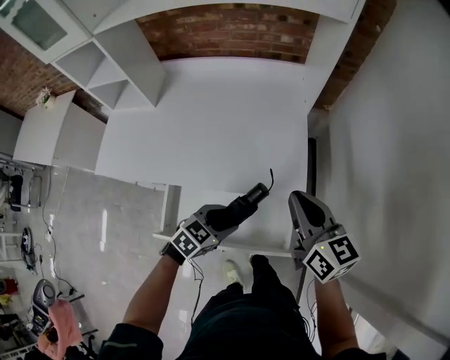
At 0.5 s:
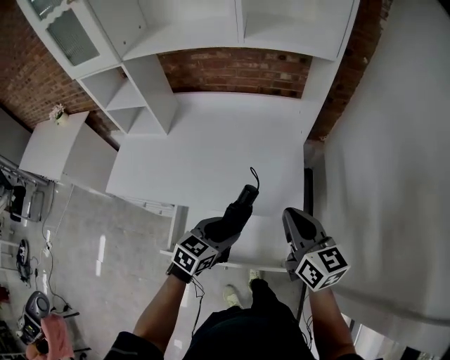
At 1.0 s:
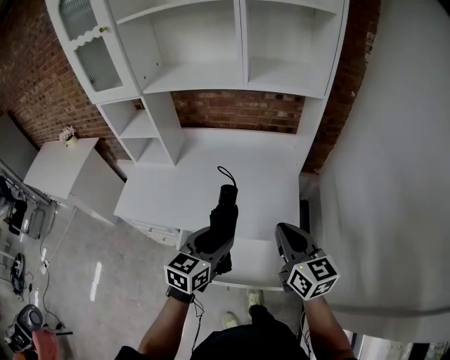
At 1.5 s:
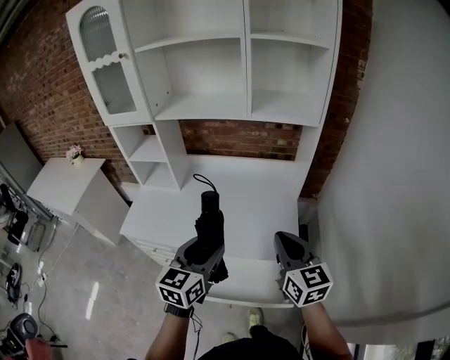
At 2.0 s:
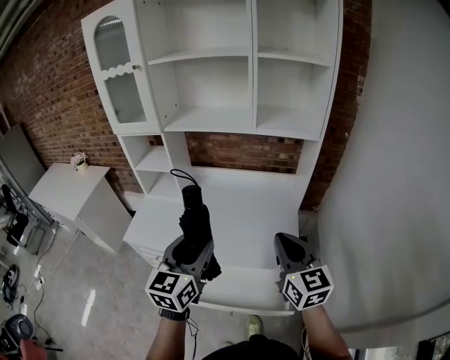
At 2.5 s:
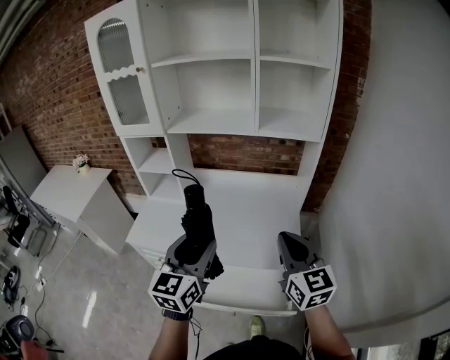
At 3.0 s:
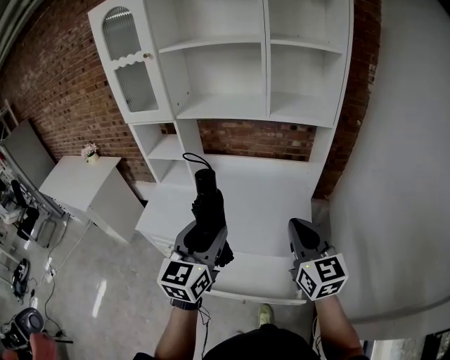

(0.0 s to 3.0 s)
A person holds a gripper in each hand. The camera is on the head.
0.0 s - 1.5 s: The right gripper moves upward and to the left, about 15 cm. The left gripper is displaced upward by some 30 cm, and tilts its fingers roughly 30 degrees upward.
1.5 s - 3.0 s: Both grippers travel together upward, approximately 5 cm.

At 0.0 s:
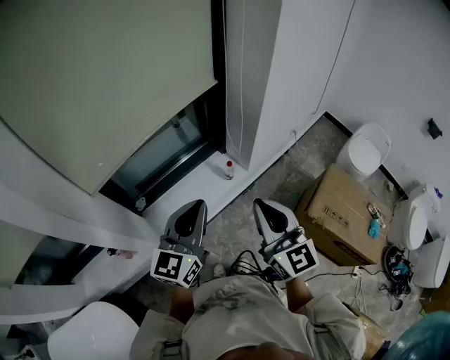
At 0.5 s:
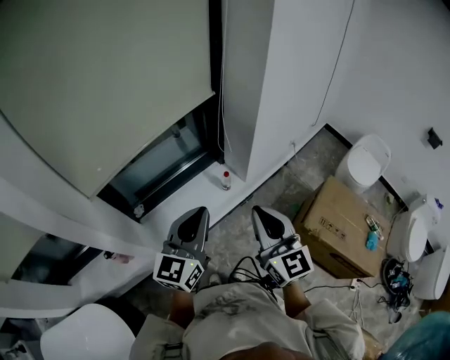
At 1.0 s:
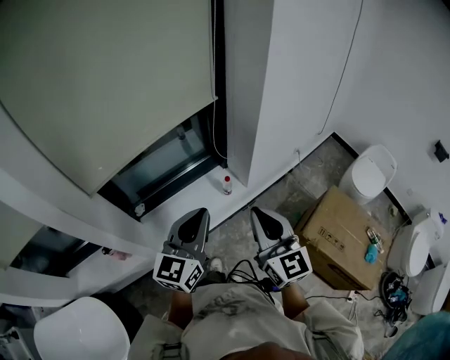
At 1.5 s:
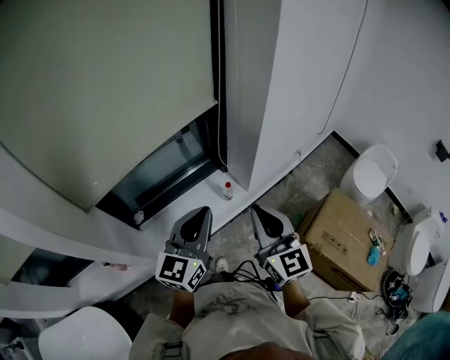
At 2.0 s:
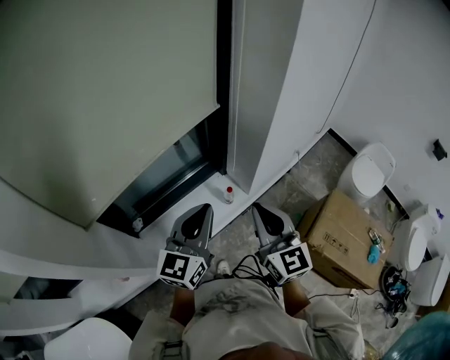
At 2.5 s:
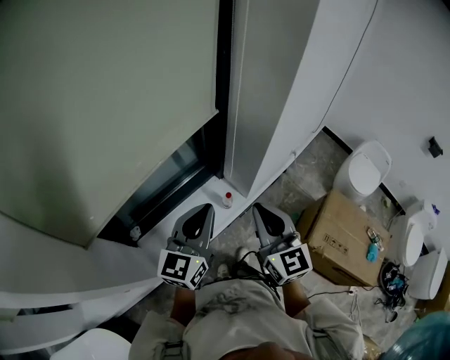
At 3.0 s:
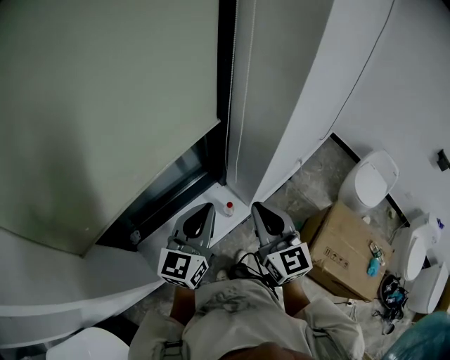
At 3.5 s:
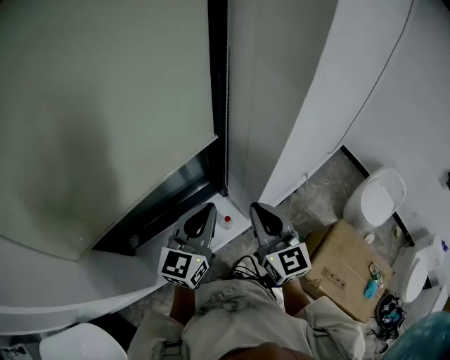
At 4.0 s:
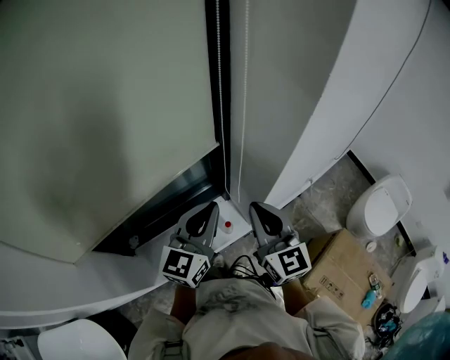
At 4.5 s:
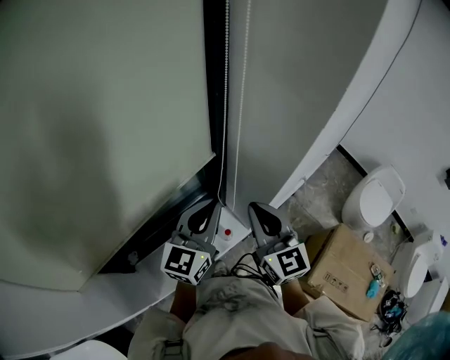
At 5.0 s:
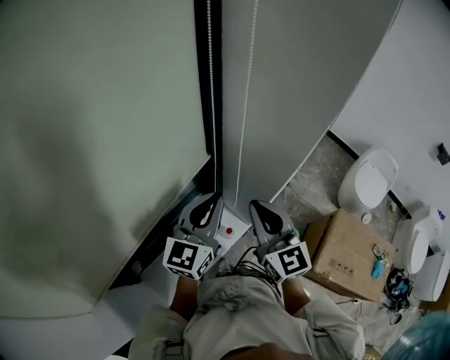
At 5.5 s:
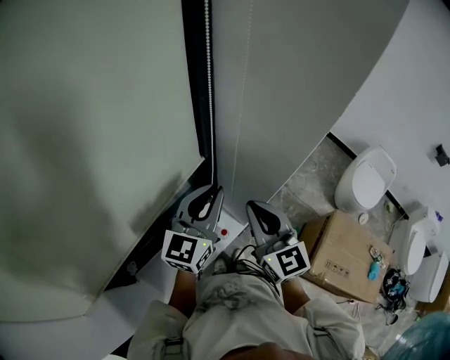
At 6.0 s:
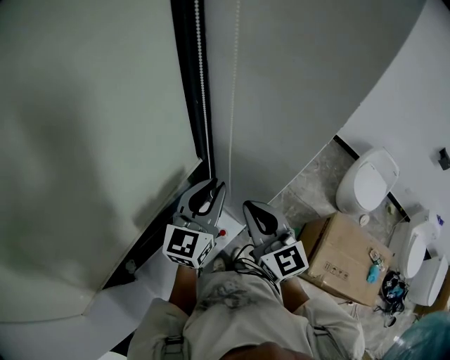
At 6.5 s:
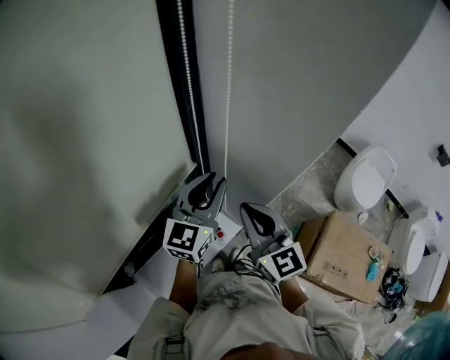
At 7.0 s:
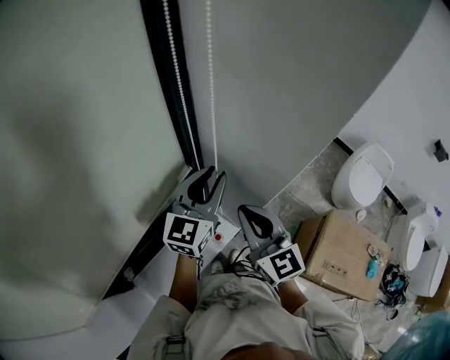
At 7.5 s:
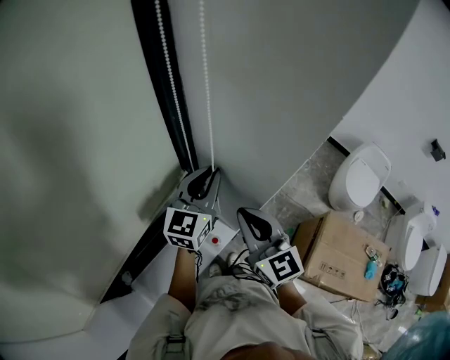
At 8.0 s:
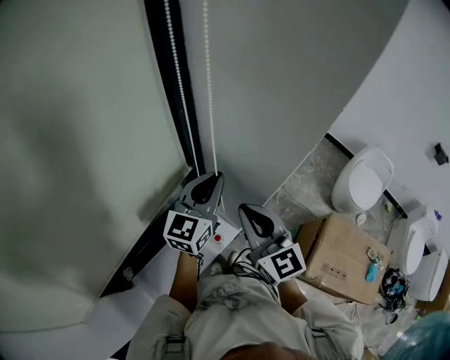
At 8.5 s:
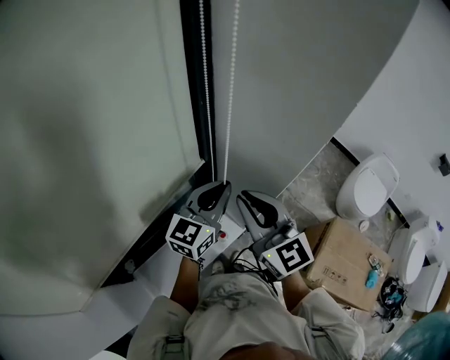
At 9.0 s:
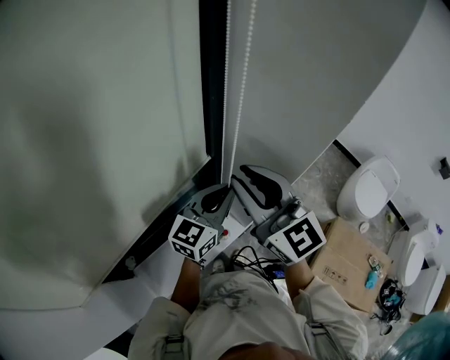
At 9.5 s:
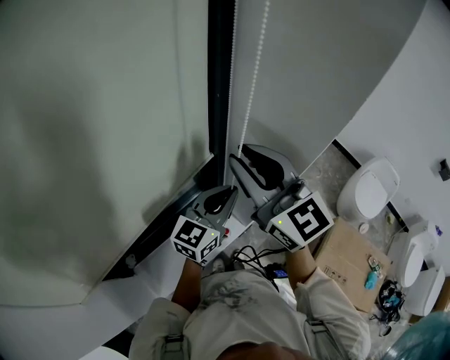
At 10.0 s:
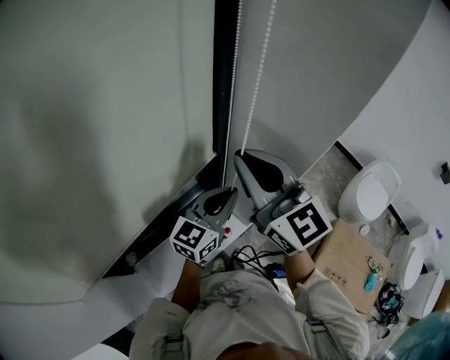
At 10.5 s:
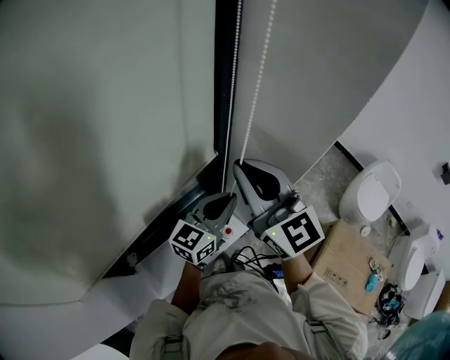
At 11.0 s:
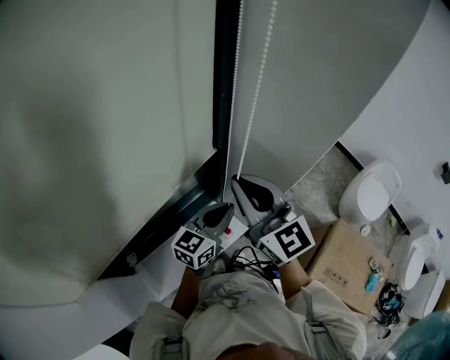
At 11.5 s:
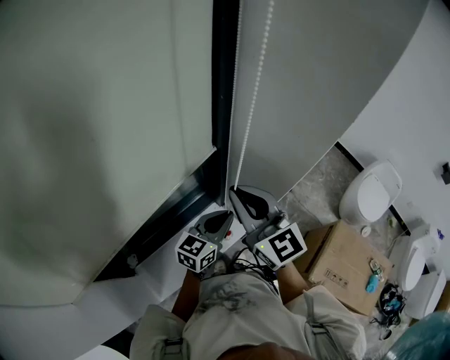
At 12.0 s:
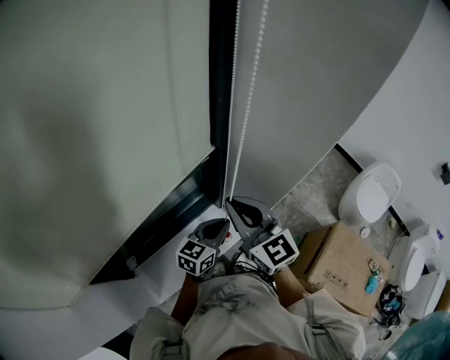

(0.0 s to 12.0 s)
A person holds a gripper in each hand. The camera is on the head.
0.0 s - 2.0 s: The two grippers go approximately 10 cm forward.
2.0 s - 4.0 s: Both grippers travel together forward, some 20 cm.
4.0 s - 6.0 s: The left gripper shifts approximately 15 cm forward. The right gripper heads forward, covering some 5 cm.
6.0 s - 8.0 s: The left gripper ends up roughly 5 cm from where it was.
8.0 s - 10.0 s: The right gripper goes roughly 15 cm upward and to the left, and opens, then closes once more. Meanwhile the left gripper heads backward, covering roughly 5 cm.
10.0 s - 12.0 s: Both grippers move downward, some 15 cm.

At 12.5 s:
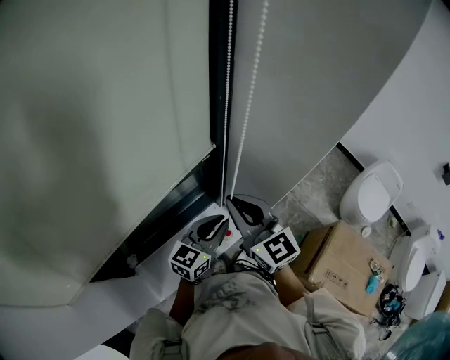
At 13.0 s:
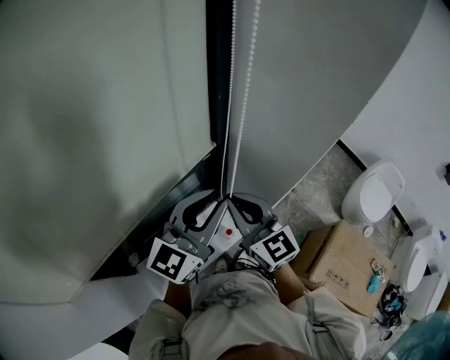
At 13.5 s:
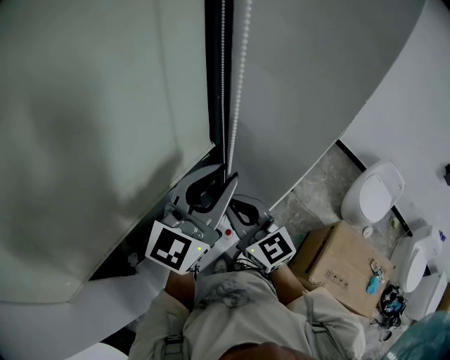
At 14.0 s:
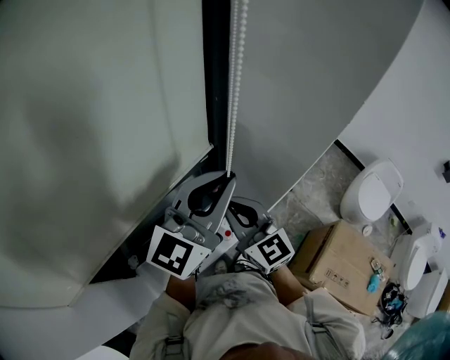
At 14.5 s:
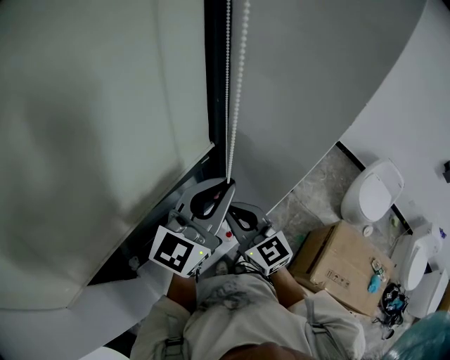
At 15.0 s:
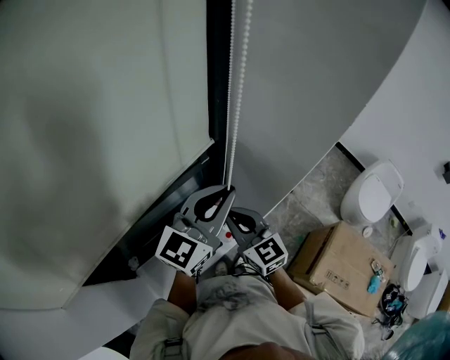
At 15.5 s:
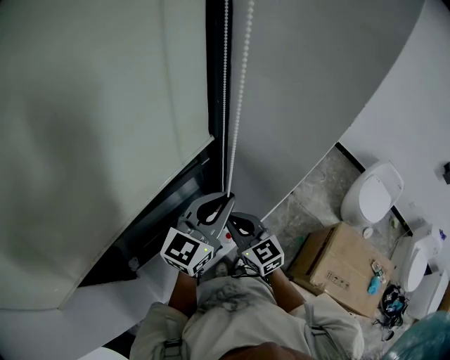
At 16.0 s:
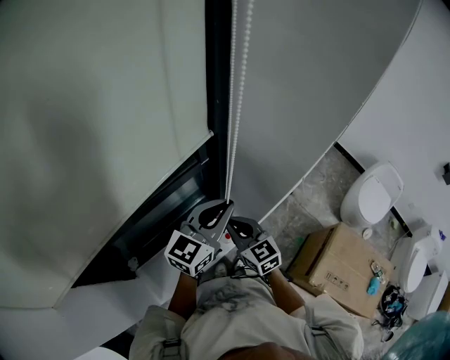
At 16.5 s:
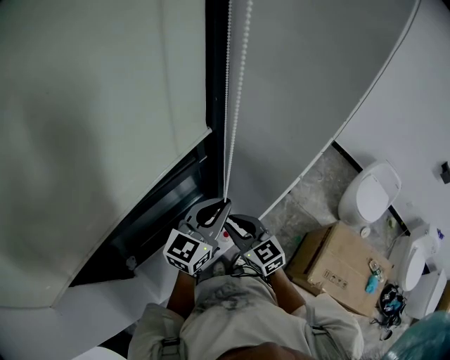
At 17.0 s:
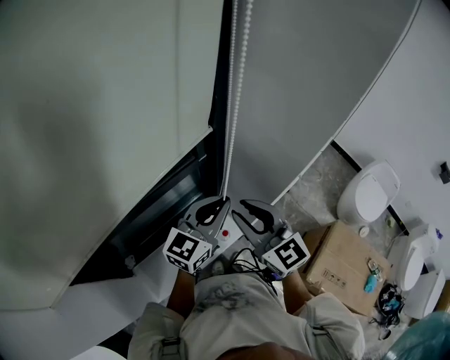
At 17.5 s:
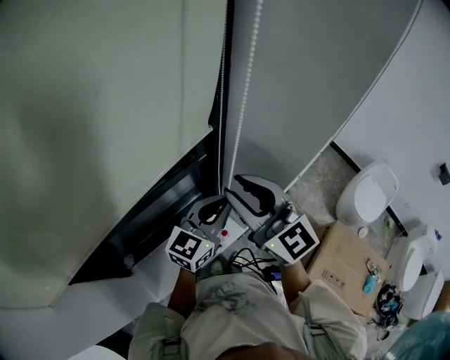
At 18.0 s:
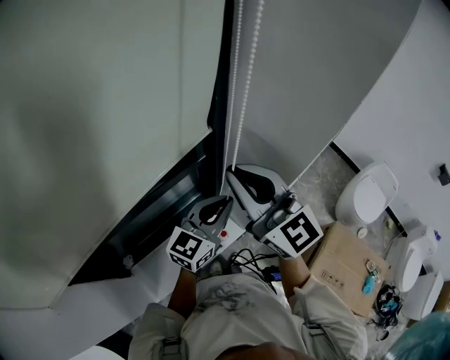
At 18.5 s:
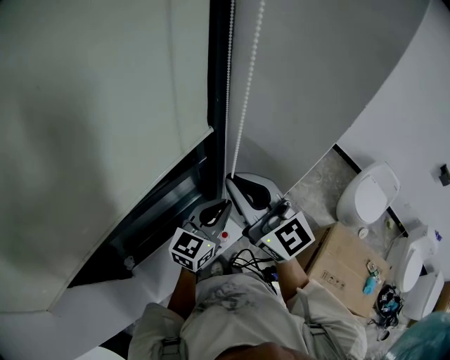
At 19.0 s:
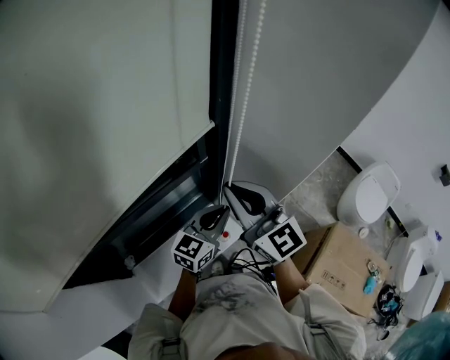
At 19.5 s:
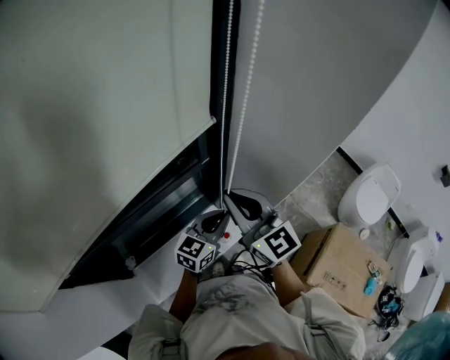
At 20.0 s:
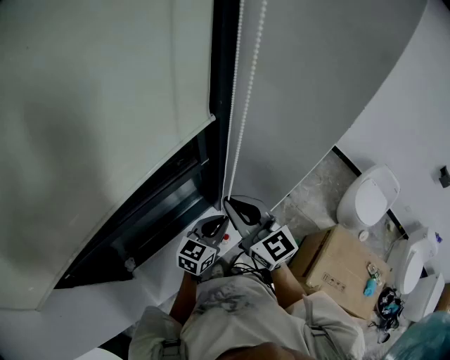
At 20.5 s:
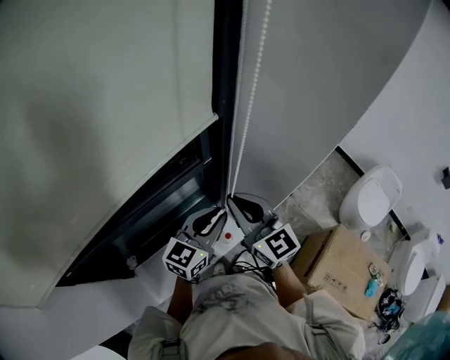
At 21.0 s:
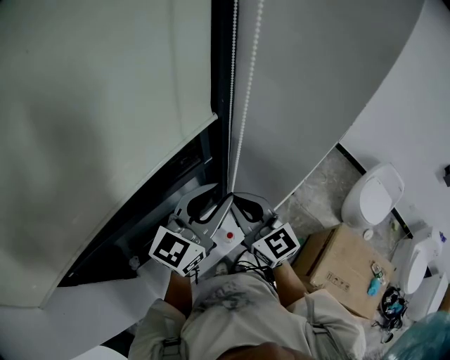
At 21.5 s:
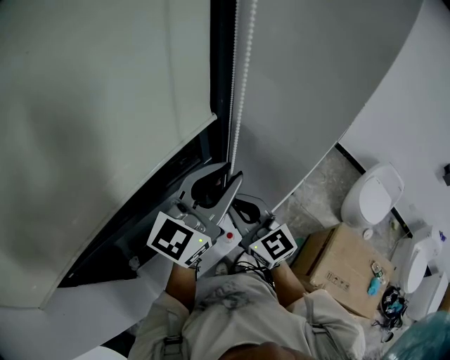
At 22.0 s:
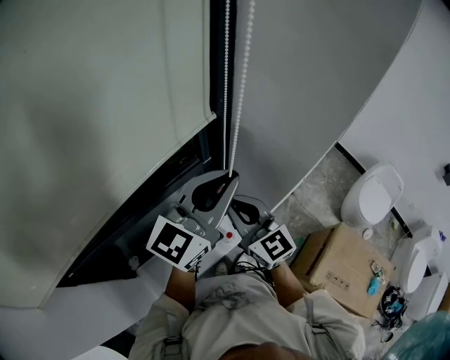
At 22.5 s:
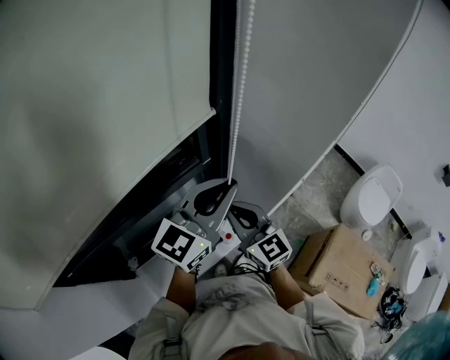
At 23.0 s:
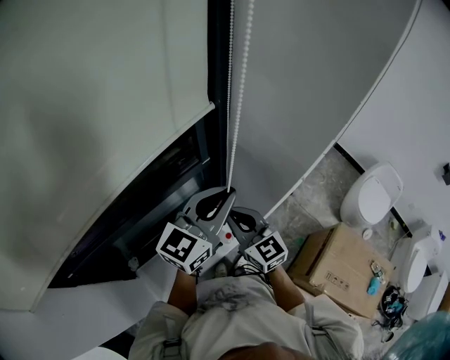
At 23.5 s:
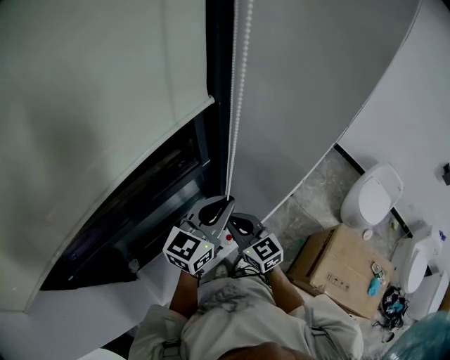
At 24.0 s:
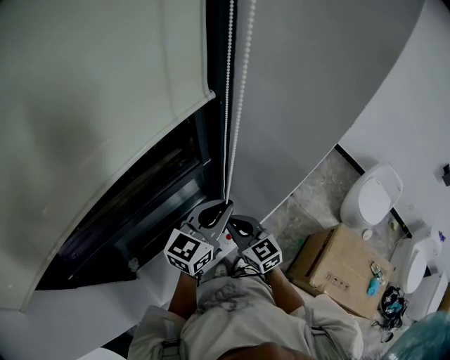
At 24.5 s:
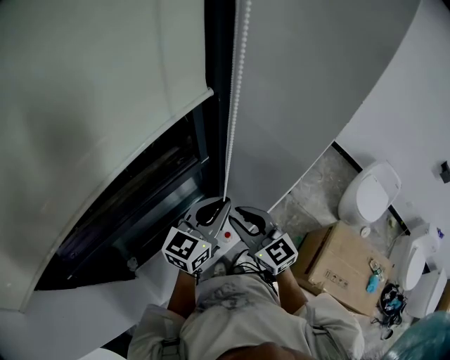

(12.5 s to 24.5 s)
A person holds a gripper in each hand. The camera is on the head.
12.5 s - 14.5 s: The left gripper moves upward, roughly 20 cm, and rotates some 20 degrees.
14.5 s - 16.5 s: Both grippers travel together downward, roughly 10 cm.
16.5 s - 18.5 s: The right gripper heads upward, covering approximately 25 cm, and swivels roughly 30 degrees.
18.5 s - 20.5 s: The right gripper shifts about 10 cm downward; the left gripper travels downward and back again, some 10 cm each way.
20.5 s - 22.5 s: The left gripper shifts some 15 cm upward.
22.5 s - 24.5 s: The left gripper travels downward by some 10 cm; the right gripper moves roughly 10 cm downward and comes back, and opens.
